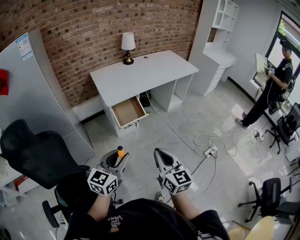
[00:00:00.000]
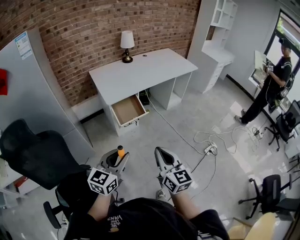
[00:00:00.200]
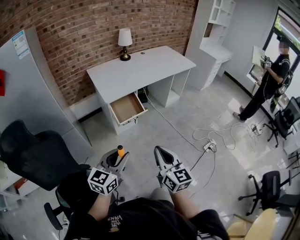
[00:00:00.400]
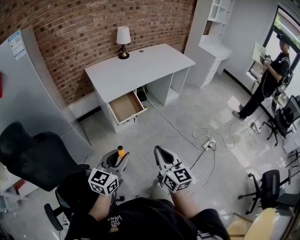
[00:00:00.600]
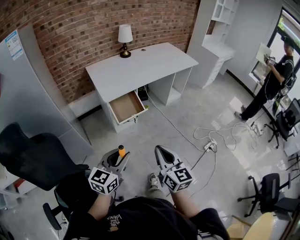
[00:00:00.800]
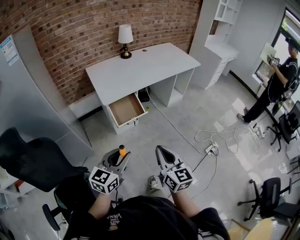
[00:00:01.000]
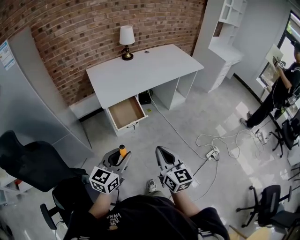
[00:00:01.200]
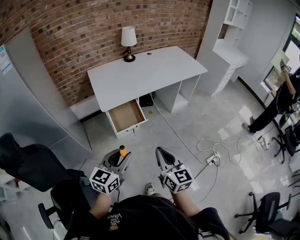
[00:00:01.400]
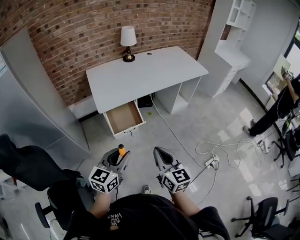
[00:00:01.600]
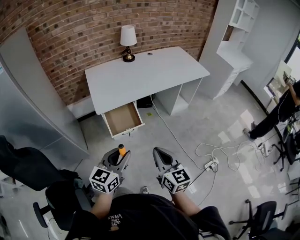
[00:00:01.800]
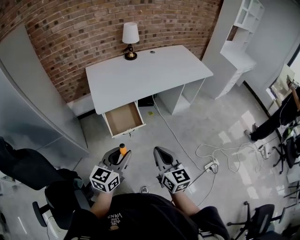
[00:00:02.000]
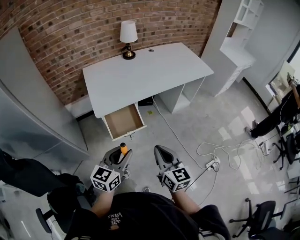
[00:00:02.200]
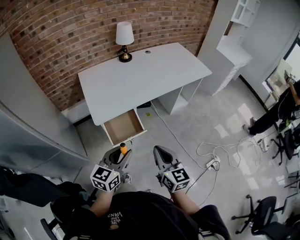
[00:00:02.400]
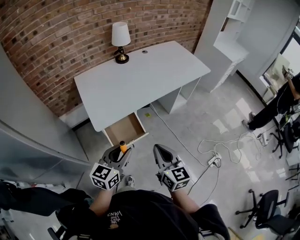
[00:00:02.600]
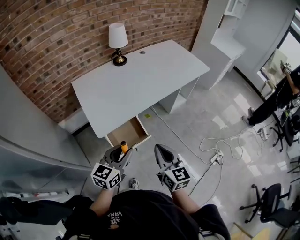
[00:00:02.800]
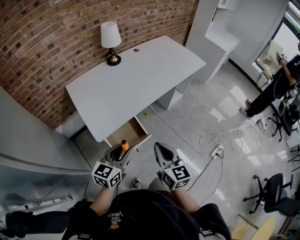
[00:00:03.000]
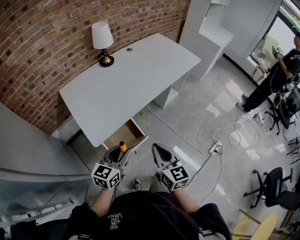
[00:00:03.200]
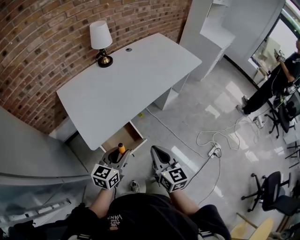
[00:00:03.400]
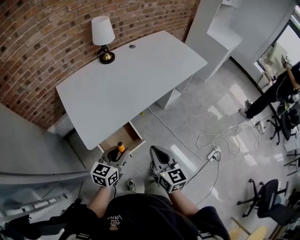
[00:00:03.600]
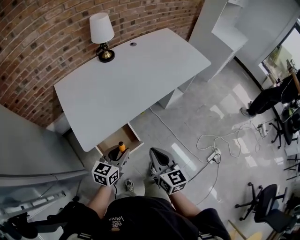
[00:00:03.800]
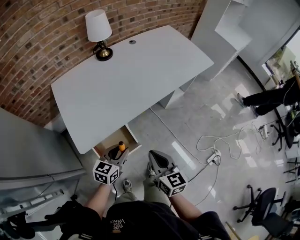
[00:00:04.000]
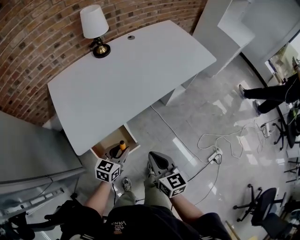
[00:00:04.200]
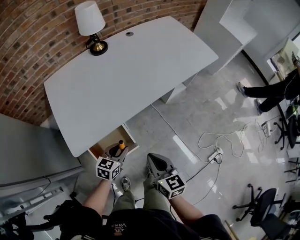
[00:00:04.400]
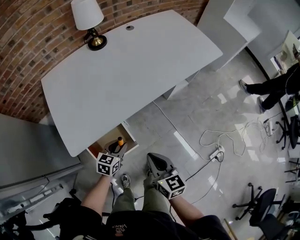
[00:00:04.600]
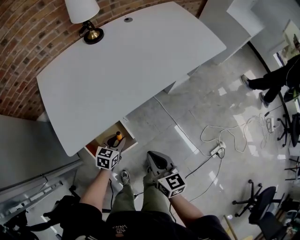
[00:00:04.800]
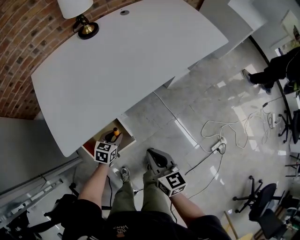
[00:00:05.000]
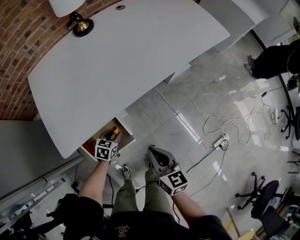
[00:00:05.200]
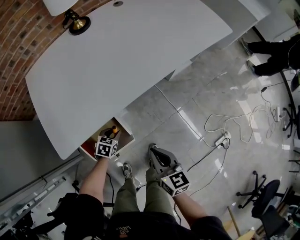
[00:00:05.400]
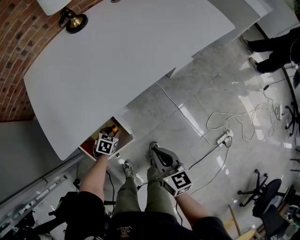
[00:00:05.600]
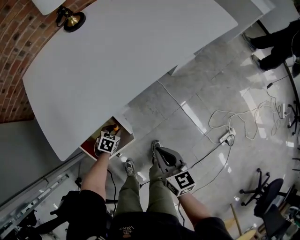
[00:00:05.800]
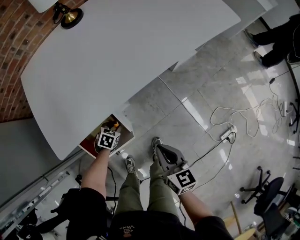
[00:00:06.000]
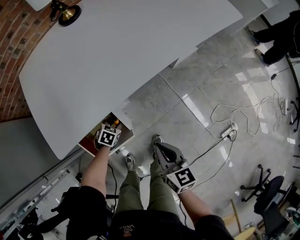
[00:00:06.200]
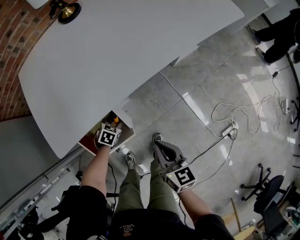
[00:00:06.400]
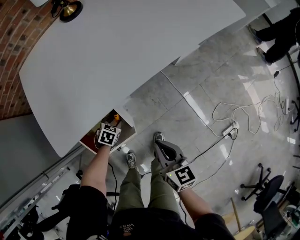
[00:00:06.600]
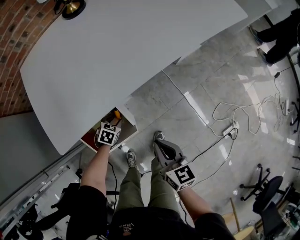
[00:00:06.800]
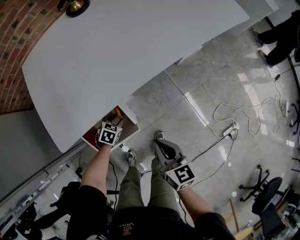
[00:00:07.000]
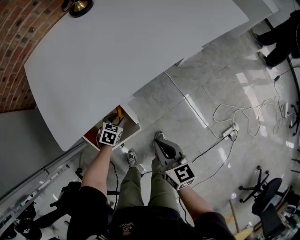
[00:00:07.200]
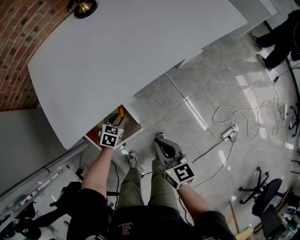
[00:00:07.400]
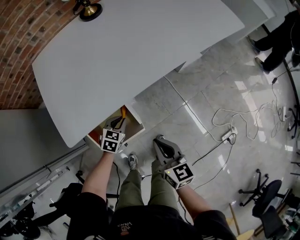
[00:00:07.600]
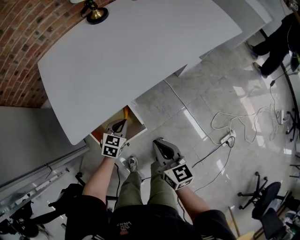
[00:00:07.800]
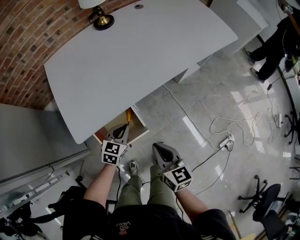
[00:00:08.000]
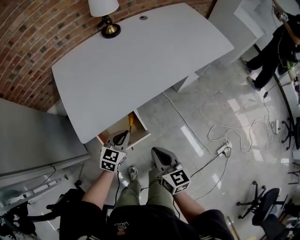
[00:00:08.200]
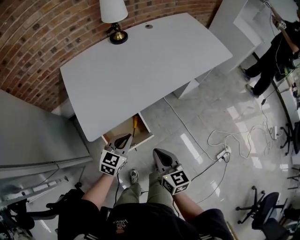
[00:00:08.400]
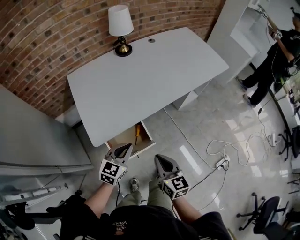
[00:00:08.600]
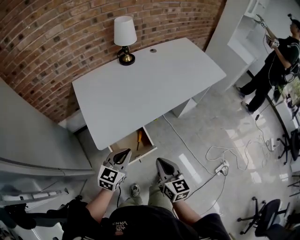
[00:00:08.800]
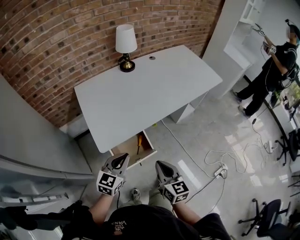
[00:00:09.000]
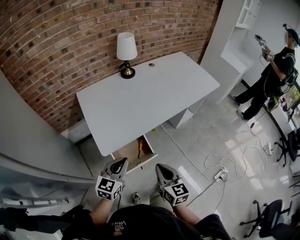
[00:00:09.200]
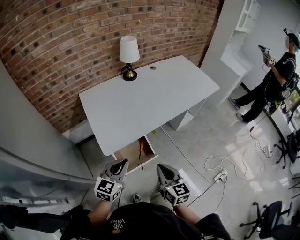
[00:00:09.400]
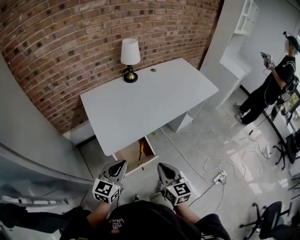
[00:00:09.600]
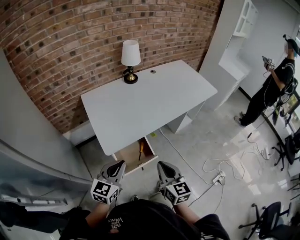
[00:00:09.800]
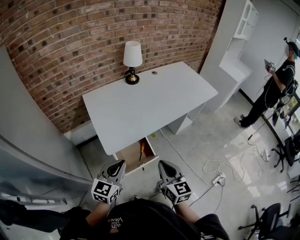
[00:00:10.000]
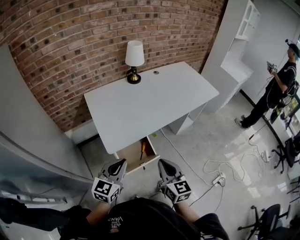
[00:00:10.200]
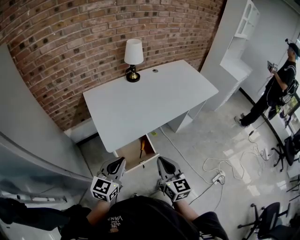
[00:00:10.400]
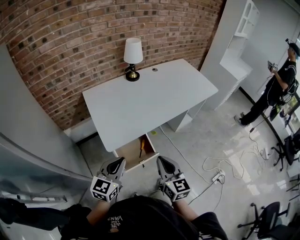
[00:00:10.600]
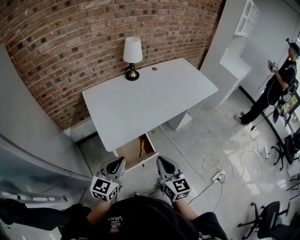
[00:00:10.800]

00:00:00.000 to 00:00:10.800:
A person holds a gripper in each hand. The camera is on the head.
00:00:00.000 to 00:00:01.600: The grippers both shift forward by roughly 20 cm.
00:00:01.600 to 00:00:03.000: The right gripper moves forward and to the left, roughly 25 cm; the left gripper heads forward, covering about 25 cm.
00:00:03.000 to 00:00:04.600: The left gripper travels downward and forward by approximately 35 cm, and swivels approximately 20 degrees; the right gripper shifts roughly 25 cm downward, forward and to the right.
00:00:04.600 to 00:00:06.200: The left gripper heads downward, covering about 25 cm, and tilts its fingers about 30 degrees downward. The right gripper is displaced downward, to the right and forward by roughly 15 cm.
00:00:06.200 to 00:00:07.800: The right gripper shifts approximately 10 cm to the left and upward, while the left gripper is displaced upward by about 15 cm, changes its angle by some 30 degrees, and closes up.
00:00:07.800 to 00:00:09.200: The left gripper travels upward and backward by roughly 35 cm, and swivels about 30 degrees, while the right gripper is displaced upward, backward and to the left by approximately 25 cm.
00:00:09.200 to 00:00:10.800: The left gripper travels backward and upward by approximately 10 cm; the right gripper moves upward, roughly 5 cm.

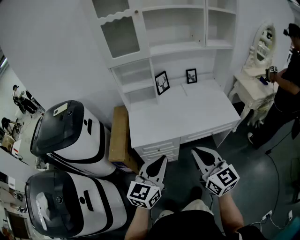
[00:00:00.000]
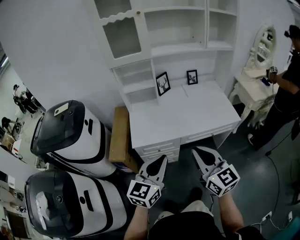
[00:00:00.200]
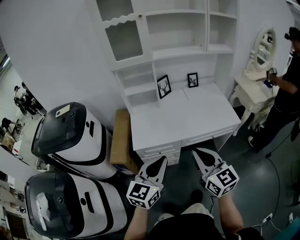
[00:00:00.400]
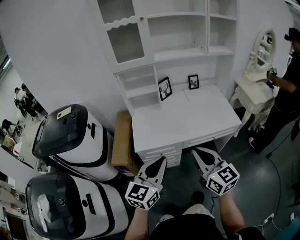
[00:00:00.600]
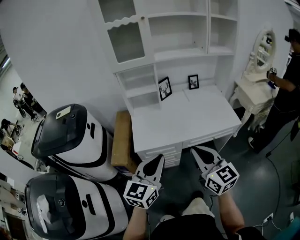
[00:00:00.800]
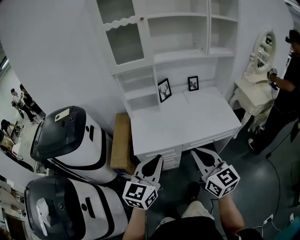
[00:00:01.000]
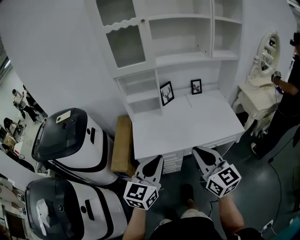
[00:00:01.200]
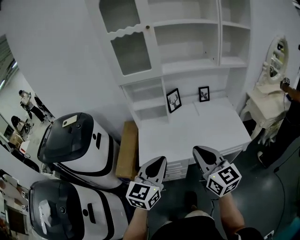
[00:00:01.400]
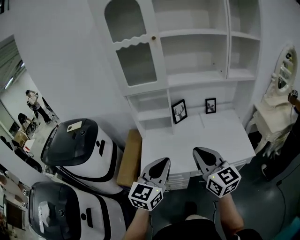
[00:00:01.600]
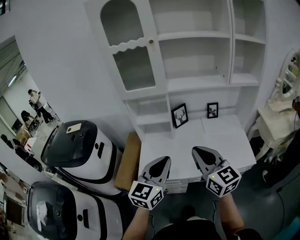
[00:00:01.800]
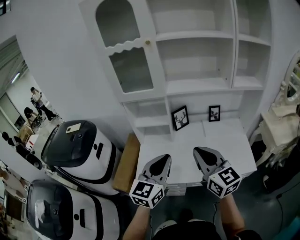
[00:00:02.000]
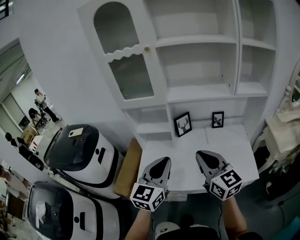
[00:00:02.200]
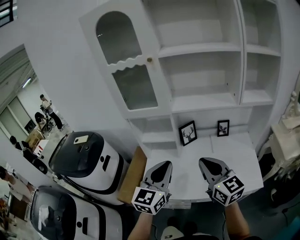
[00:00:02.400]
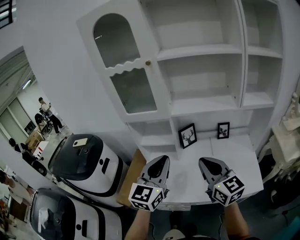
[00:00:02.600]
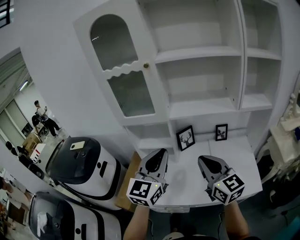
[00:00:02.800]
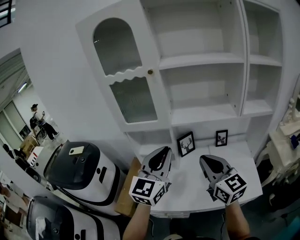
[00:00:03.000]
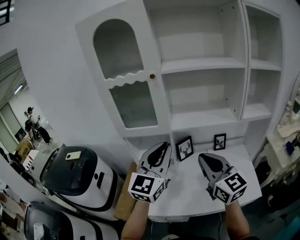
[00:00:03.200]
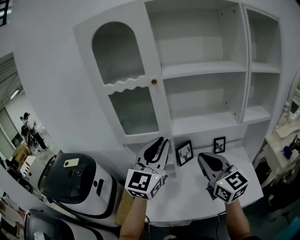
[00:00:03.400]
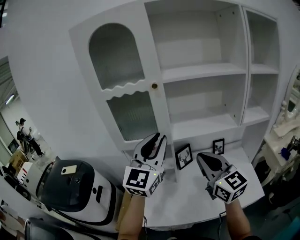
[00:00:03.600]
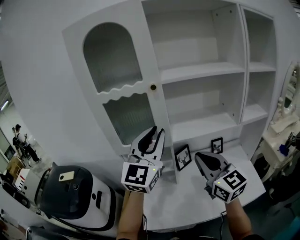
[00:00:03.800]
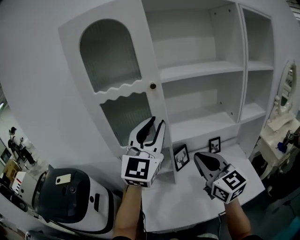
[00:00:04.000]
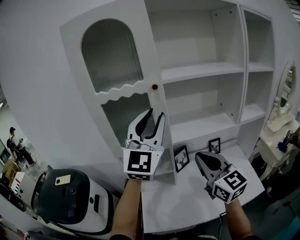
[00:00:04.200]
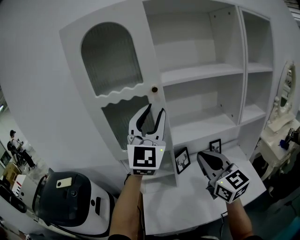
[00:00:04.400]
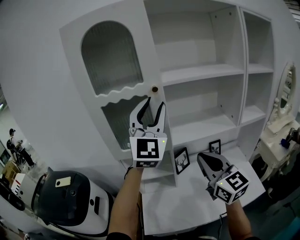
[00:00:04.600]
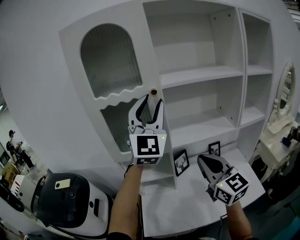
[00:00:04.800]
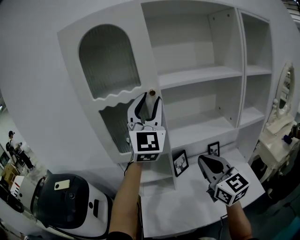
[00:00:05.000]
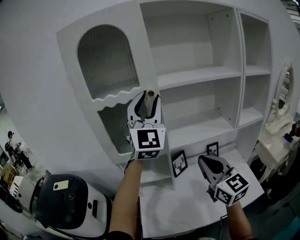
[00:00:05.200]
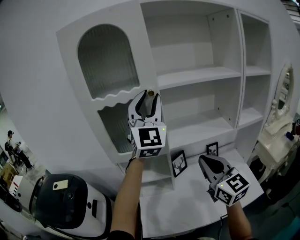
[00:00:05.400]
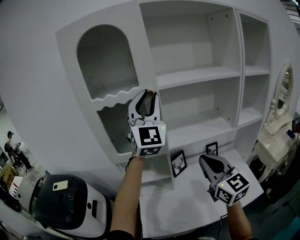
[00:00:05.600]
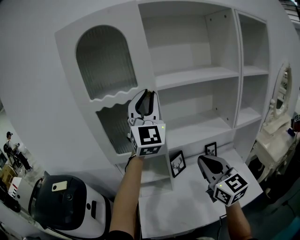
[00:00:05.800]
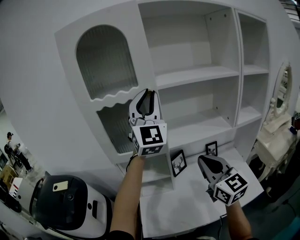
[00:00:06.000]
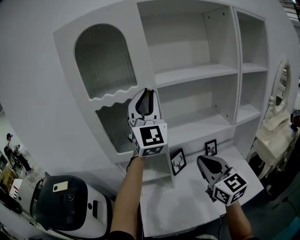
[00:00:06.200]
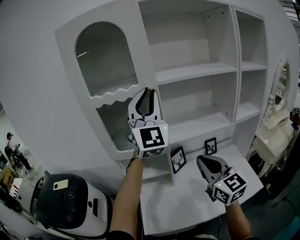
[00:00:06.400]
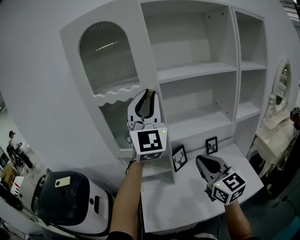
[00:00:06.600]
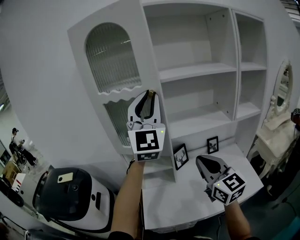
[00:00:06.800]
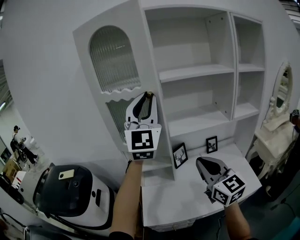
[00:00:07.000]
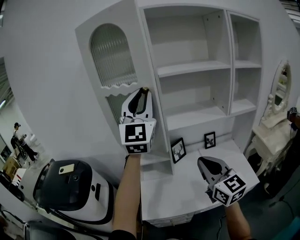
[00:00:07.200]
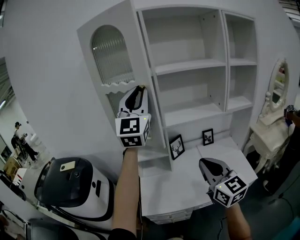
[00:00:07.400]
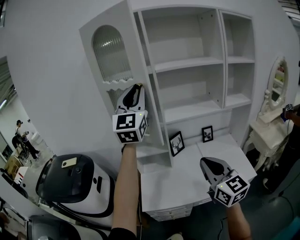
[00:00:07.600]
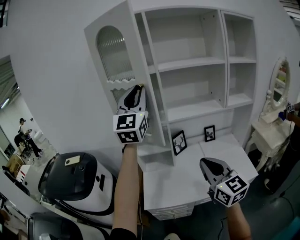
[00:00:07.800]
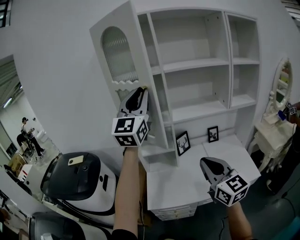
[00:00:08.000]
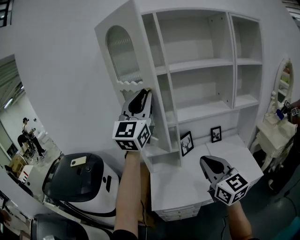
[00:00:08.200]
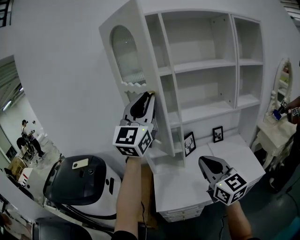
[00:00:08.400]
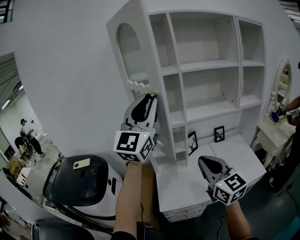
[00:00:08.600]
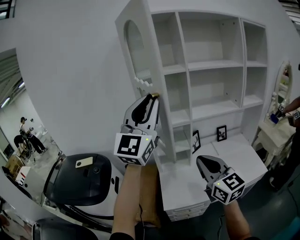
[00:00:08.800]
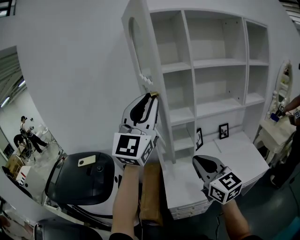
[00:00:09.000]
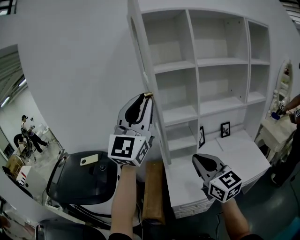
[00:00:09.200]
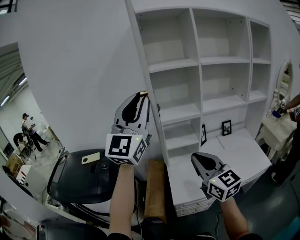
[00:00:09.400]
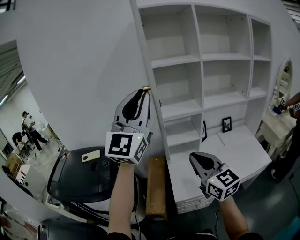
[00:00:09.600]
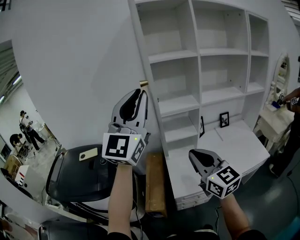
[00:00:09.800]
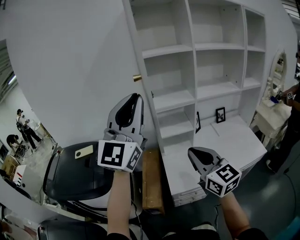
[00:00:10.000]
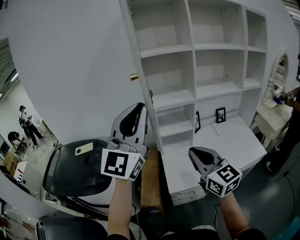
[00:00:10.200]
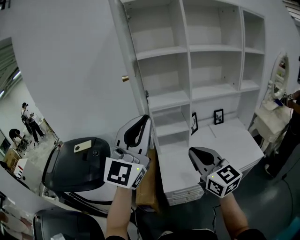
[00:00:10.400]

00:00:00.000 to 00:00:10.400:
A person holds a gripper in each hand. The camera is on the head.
00:00:00.000 to 00:00:01.400: The right gripper is displaced forward and upward by roughly 15 cm, while the left gripper goes roughly 10 cm forward.
00:00:01.400 to 00:00:03.000: The right gripper travels forward by about 25 cm. Meanwhile the left gripper moves forward and upward, about 30 cm.
00:00:03.000 to 00:00:04.400: The left gripper is displaced upward and forward by roughly 25 cm, swivels about 30 degrees, and opens its fingers, while the right gripper heads forward, to the left and upward, covering about 10 cm.
00:00:04.400 to 00:00:06.000: The left gripper moves forward, some 5 cm.
00:00:06.000 to 00:00:07.400: Both grippers travel together backward, about 15 cm.
00:00:07.400 to 00:00:09.000: The right gripper travels to the left by roughly 25 cm; the left gripper moves to the left and backward, some 20 cm.
00:00:09.000 to 00:00:10.400: The left gripper goes approximately 15 cm backward and downward.

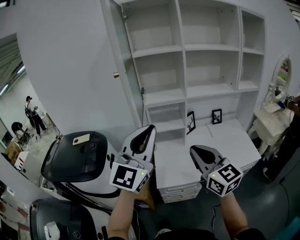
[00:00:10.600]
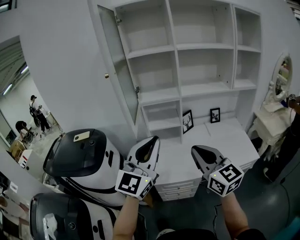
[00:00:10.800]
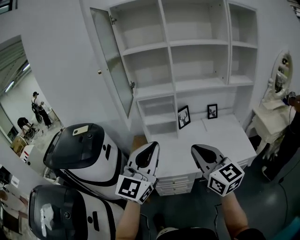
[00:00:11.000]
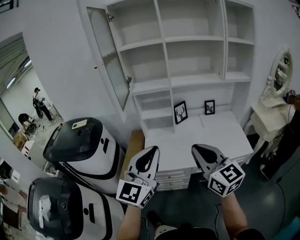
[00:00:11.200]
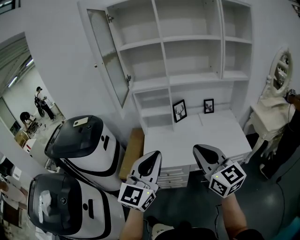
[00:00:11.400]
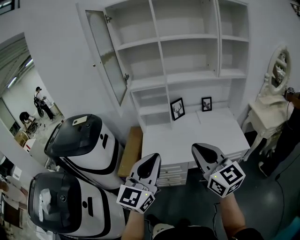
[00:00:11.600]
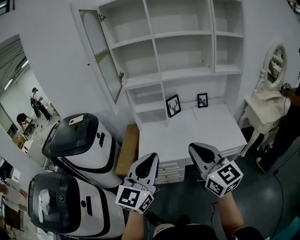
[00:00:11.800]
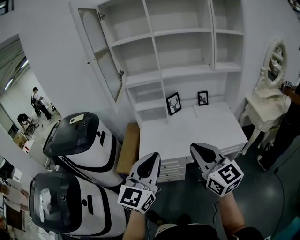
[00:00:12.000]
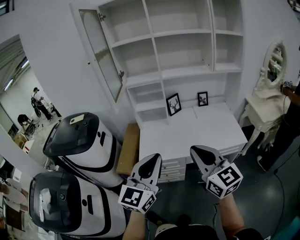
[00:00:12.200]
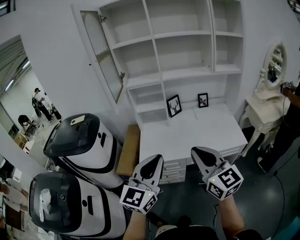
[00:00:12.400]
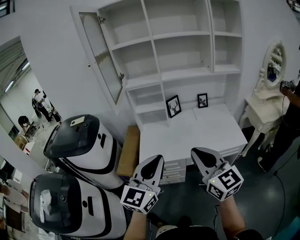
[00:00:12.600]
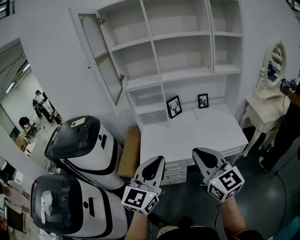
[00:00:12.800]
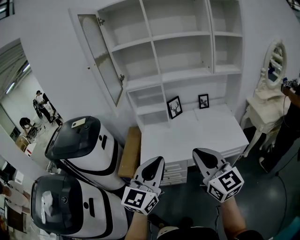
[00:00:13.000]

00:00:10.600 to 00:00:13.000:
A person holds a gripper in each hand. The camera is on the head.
00:00:10.600 to 00:00:11.800: The right gripper heads to the right and backward, covering roughly 25 cm. The left gripper moves backward, to the right and downward, roughly 30 cm, and rotates about 20 degrees.
00:00:11.800 to 00:00:13.000: The grippers make only small movements.
